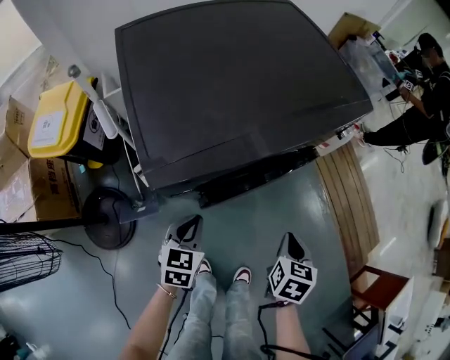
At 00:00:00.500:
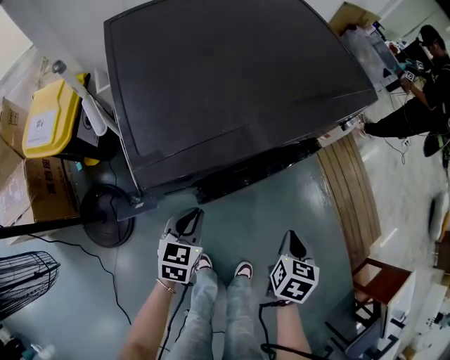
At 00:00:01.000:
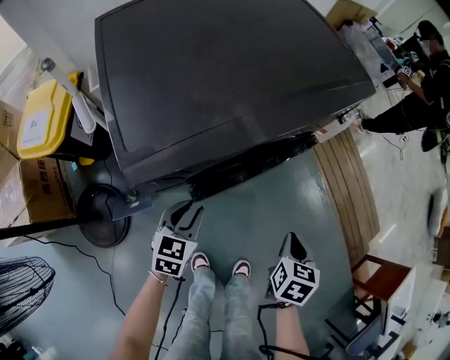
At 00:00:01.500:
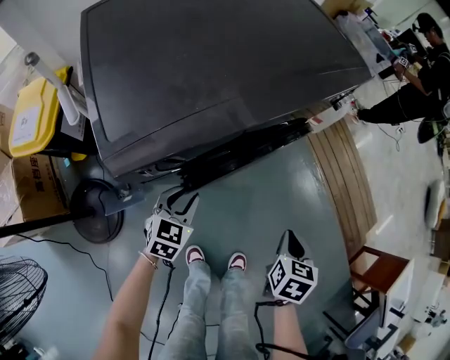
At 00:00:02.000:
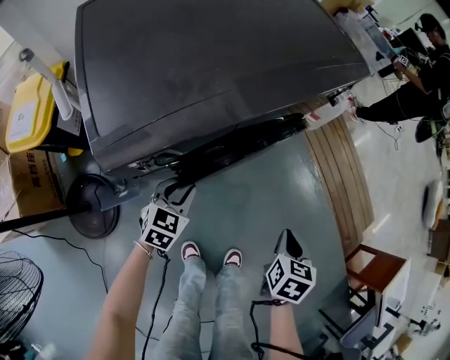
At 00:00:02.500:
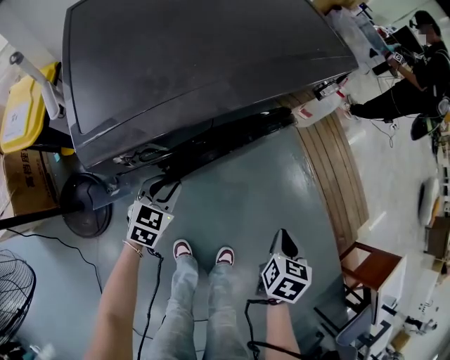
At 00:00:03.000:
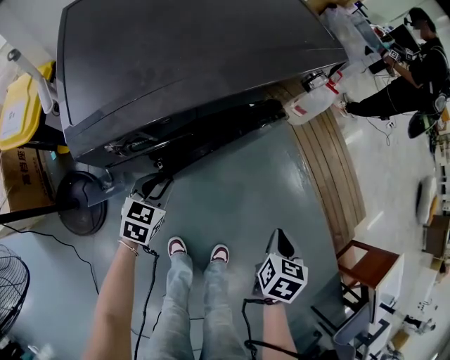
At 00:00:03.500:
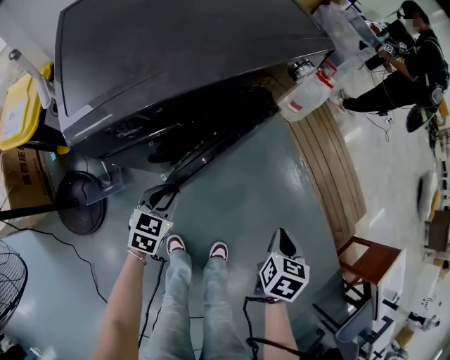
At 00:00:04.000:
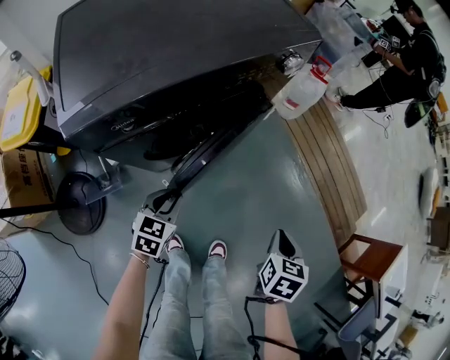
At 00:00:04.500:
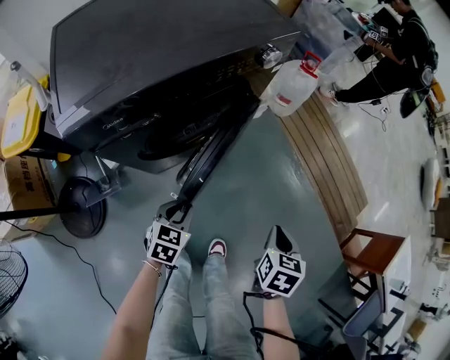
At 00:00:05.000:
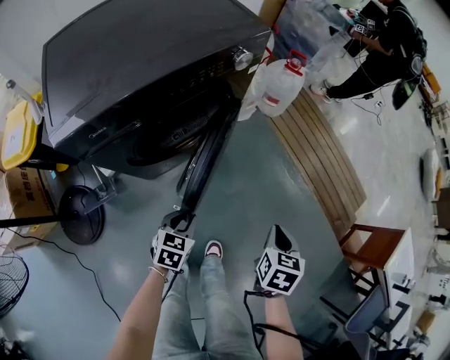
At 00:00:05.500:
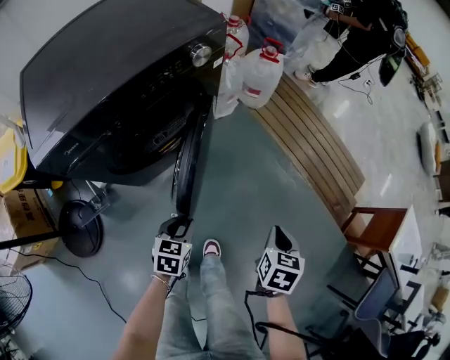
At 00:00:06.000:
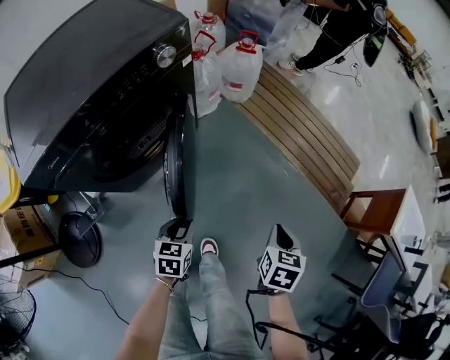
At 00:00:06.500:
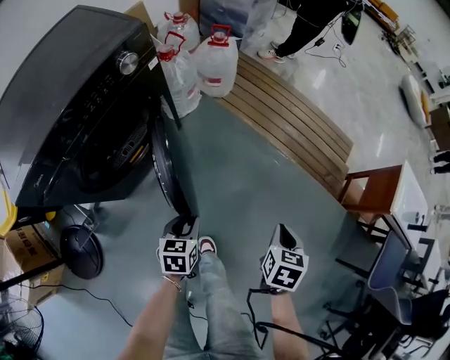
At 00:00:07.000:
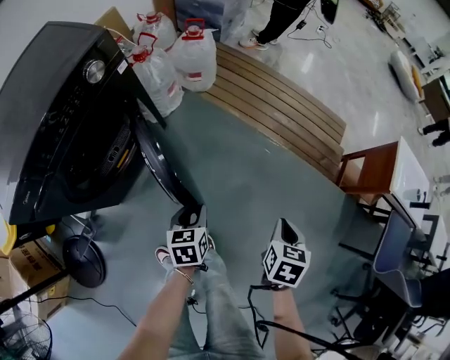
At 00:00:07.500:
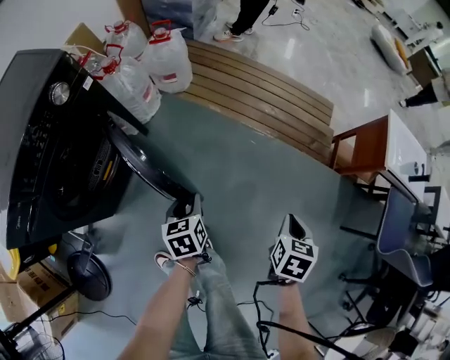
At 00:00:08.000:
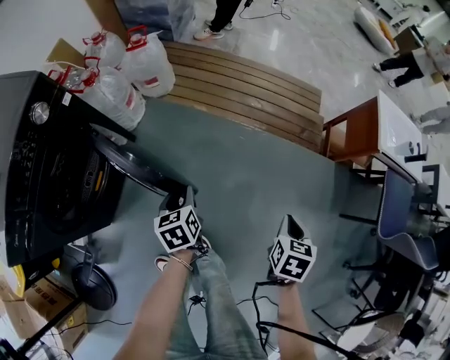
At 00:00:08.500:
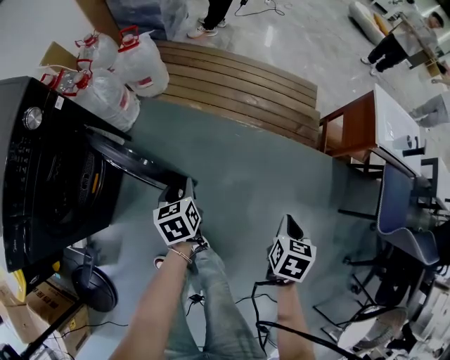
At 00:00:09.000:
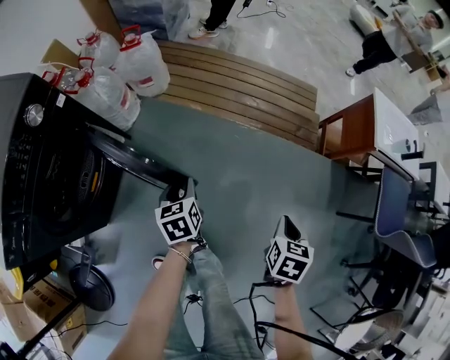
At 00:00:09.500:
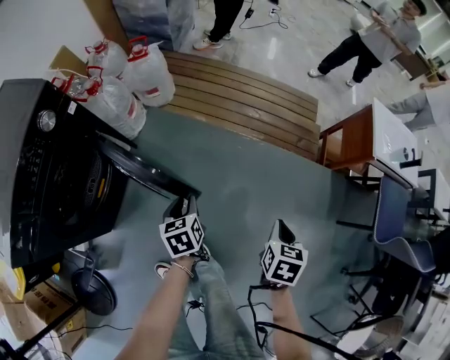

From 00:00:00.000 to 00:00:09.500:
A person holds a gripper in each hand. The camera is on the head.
From 00:00:00.000 to 00:00:02.000: The left gripper is displaced downward and forward by approximately 10 cm, and opens; the right gripper is displaced to the right by about 5 cm.
From 00:00:02.000 to 00:00:04.000: The right gripper travels to the right by approximately 10 cm. The left gripper shifts roughly 10 cm to the right and backward.
From 00:00:04.000 to 00:00:05.500: The two grippers go about 15 cm to the right.
From 00:00:05.500 to 00:00:07.500: The left gripper shifts roughly 20 cm to the right and forward. The right gripper goes roughly 25 cm to the right, and changes its angle by roughly 30 degrees.

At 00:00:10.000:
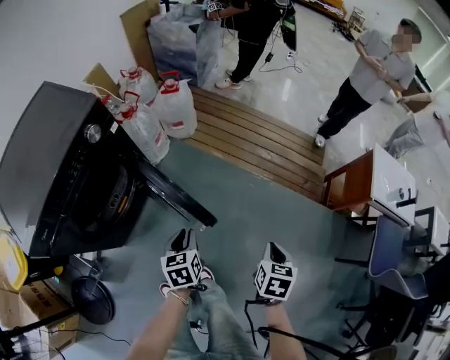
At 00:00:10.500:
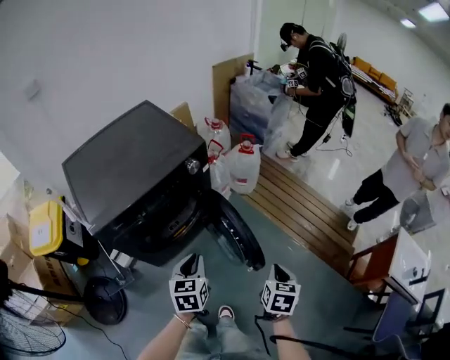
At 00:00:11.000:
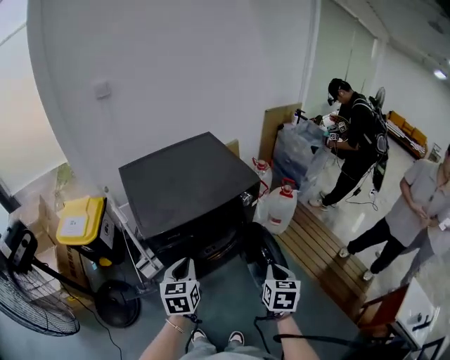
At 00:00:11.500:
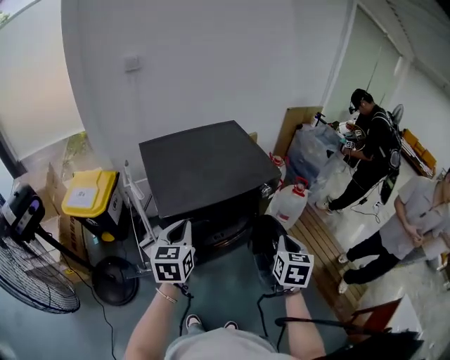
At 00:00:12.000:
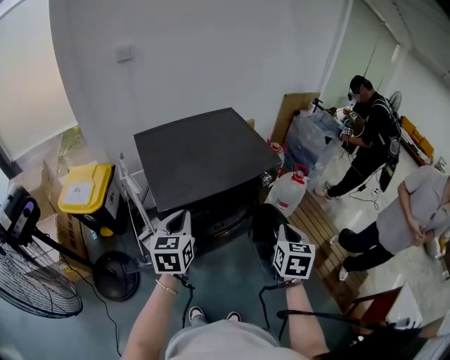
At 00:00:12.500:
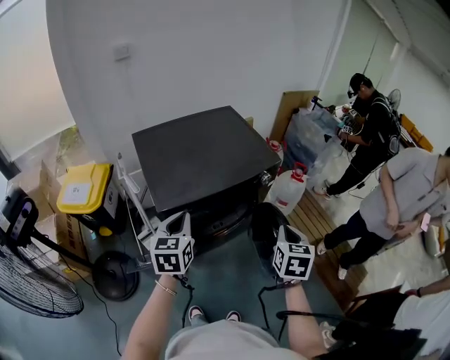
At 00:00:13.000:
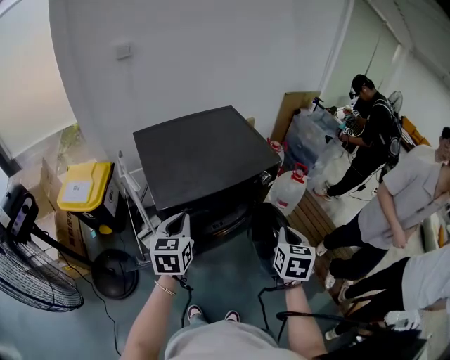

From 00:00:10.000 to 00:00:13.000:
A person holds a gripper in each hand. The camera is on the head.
From 00:00:10.000 to 00:00:11.500: The pair of grippers is taken some 40 cm. The right gripper rotates some 50 degrees. Meanwhile the left gripper swivels some 40 degrees.
From 00:00:11.500 to 00:00:13.000: The grippers stay close to where they were, moving slightly.

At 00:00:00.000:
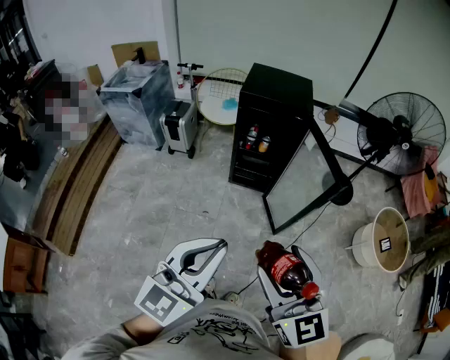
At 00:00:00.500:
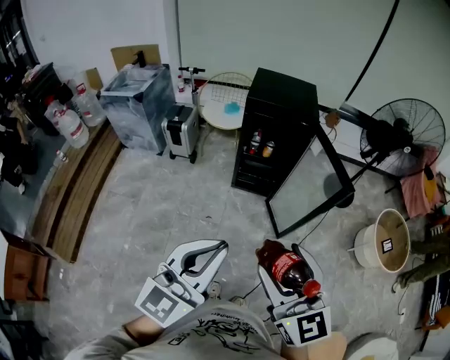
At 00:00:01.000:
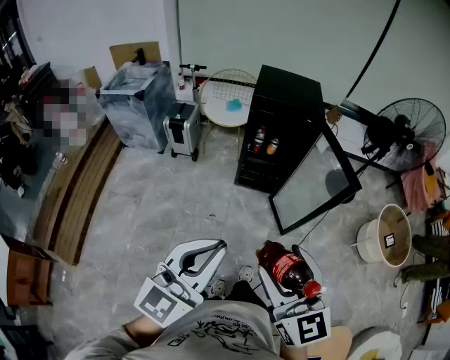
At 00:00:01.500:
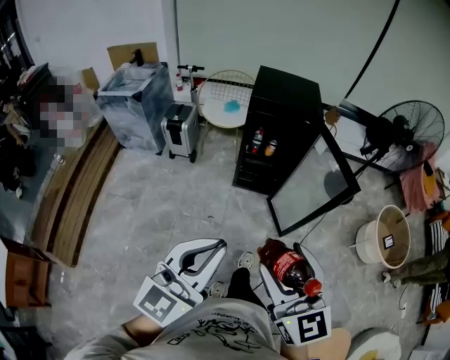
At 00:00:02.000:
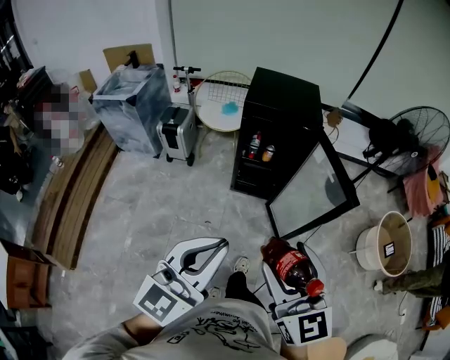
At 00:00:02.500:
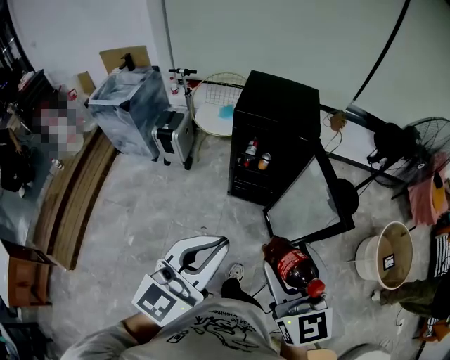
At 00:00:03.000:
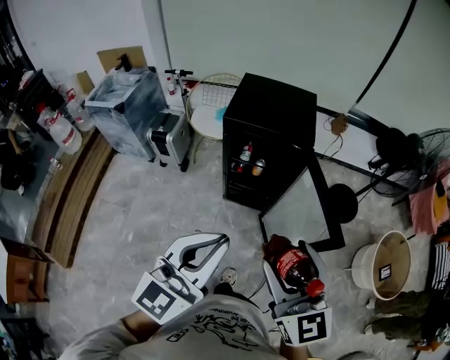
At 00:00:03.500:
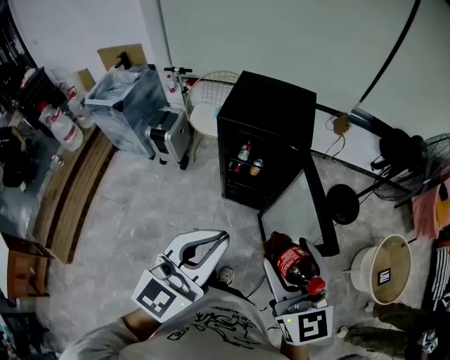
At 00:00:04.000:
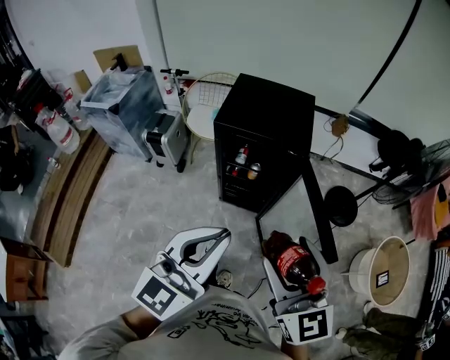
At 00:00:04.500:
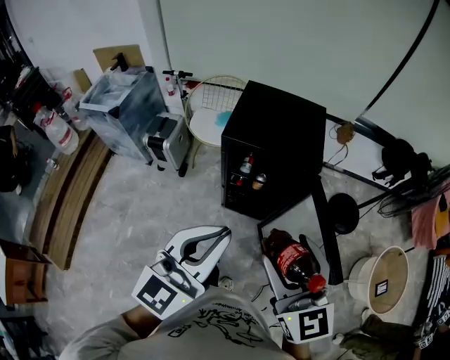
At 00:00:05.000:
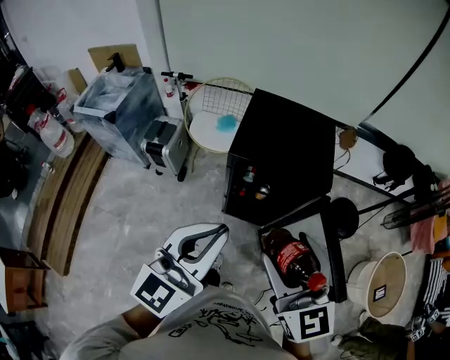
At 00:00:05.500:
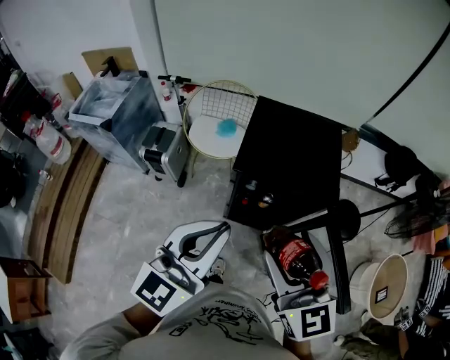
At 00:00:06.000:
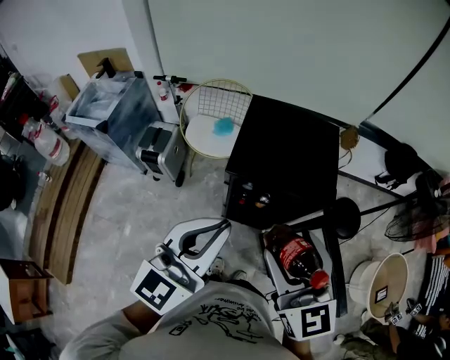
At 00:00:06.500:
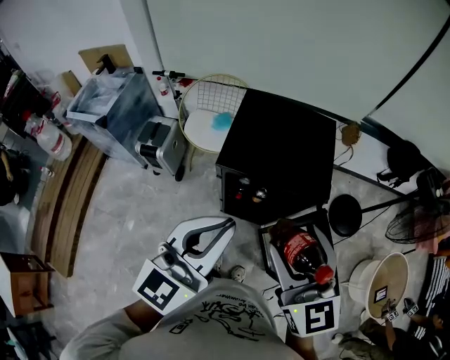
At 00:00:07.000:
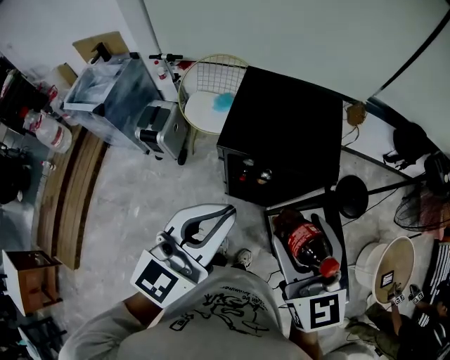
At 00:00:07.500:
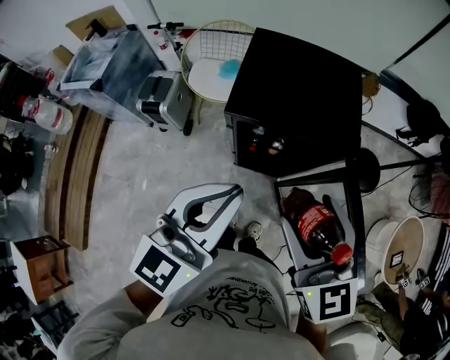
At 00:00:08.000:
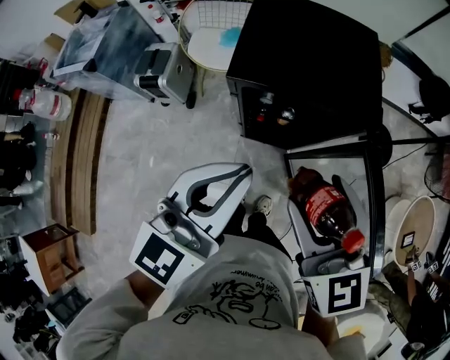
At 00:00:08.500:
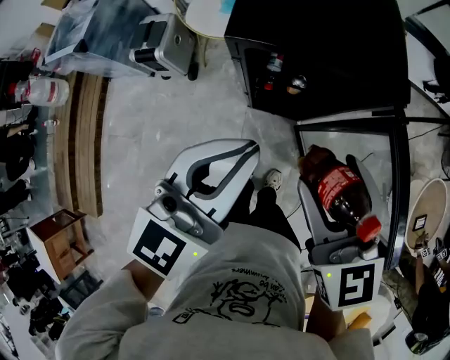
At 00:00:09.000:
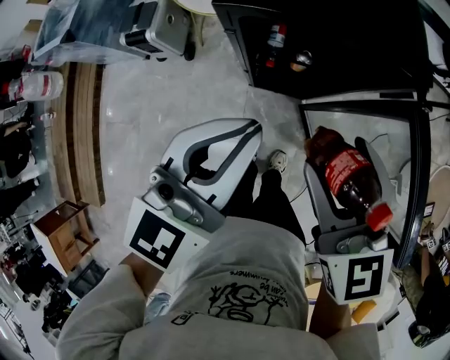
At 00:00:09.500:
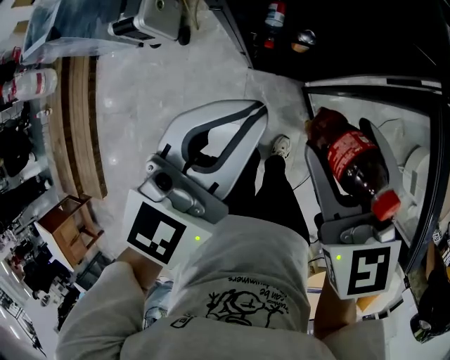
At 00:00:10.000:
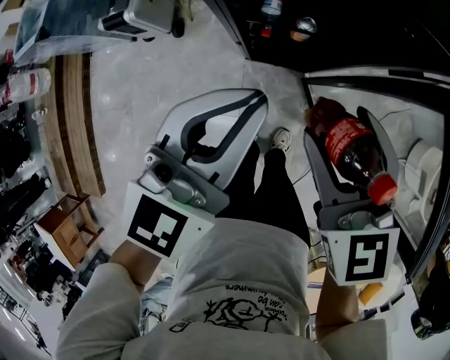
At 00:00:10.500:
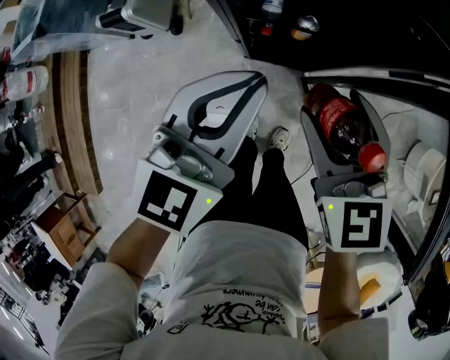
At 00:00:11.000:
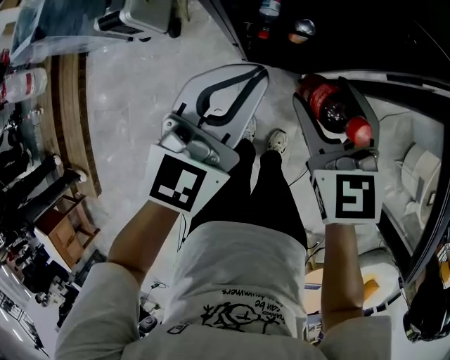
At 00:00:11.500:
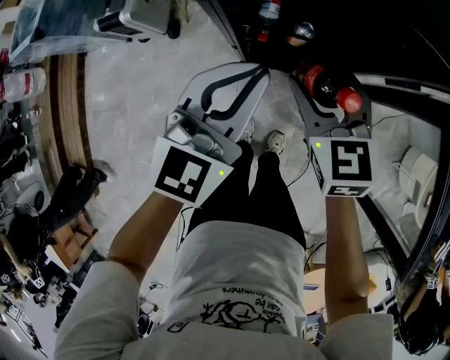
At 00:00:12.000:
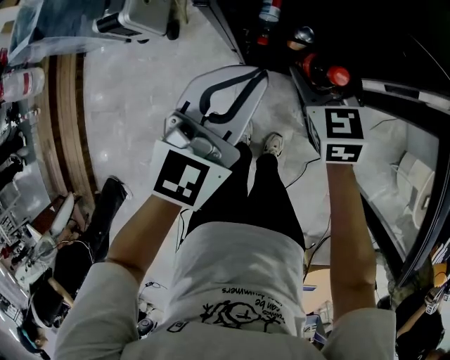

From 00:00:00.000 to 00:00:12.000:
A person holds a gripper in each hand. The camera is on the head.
From 00:00:00.000 to 00:00:02.000: The right gripper shifts about 10 cm forward. The left gripper goes some 10 cm forward and to the left.
From 00:00:02.000 to 00:00:04.000: Both grippers move forward and to the right, roughly 25 cm.
From 00:00:04.000 to 00:00:06.000: The two grippers go approximately 25 cm forward and to the left.
From 00:00:06.000 to 00:00:08.000: Both grippers travel together downward, some 10 cm.
From 00:00:08.000 to 00:00:10.000: Both grippers travel together downward, approximately 15 cm.
From 00:00:10.000 to 00:00:12.000: The right gripper heads downward and forward, covering some 20 cm; the left gripper heads downward and forward, covering about 10 cm.

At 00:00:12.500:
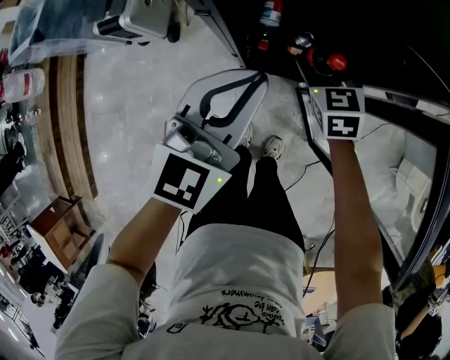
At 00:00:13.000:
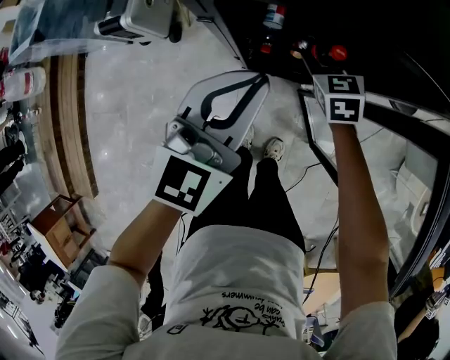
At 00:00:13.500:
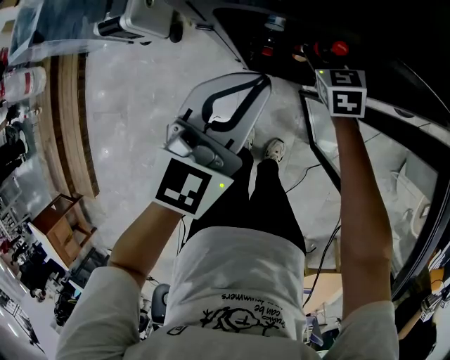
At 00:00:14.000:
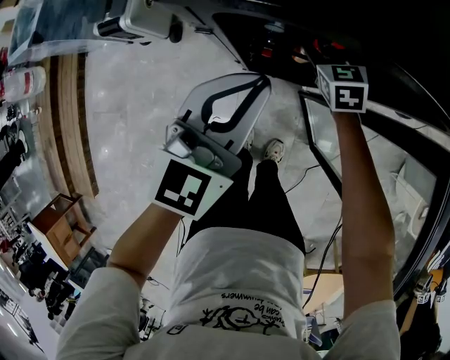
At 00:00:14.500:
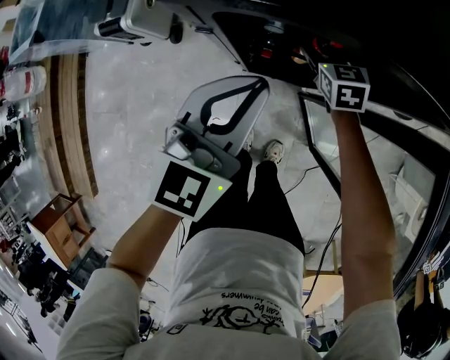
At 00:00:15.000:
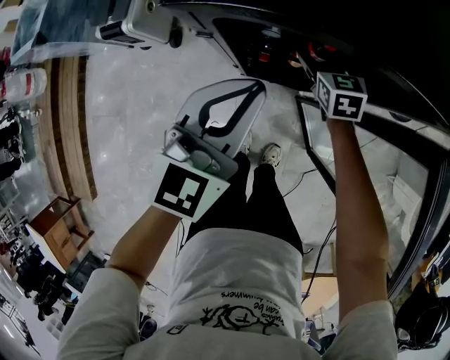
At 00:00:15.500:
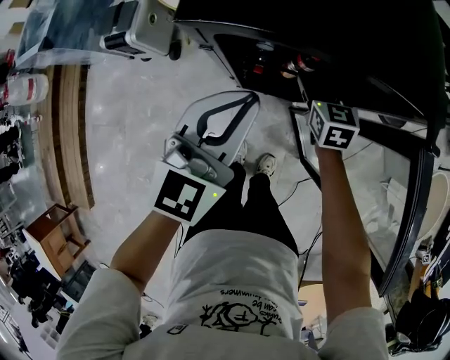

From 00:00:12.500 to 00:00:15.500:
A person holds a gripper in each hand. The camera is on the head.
From 00:00:12.500 to 00:00:14.000: The right gripper shifts about 10 cm forward and downward.
From 00:00:14.000 to 00:00:15.500: The right gripper travels upward by some 5 cm.
